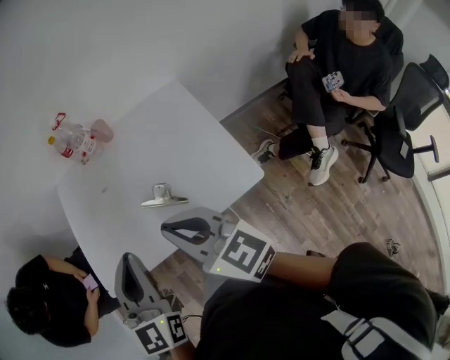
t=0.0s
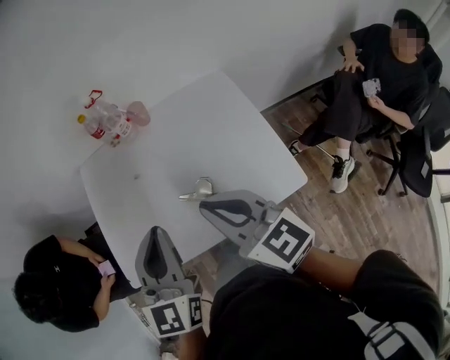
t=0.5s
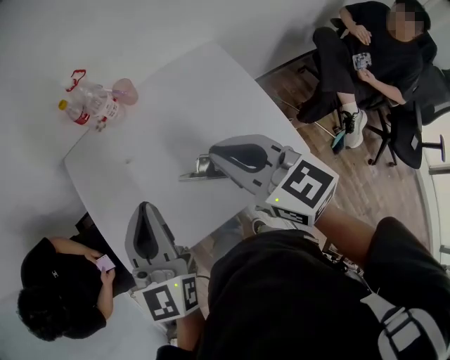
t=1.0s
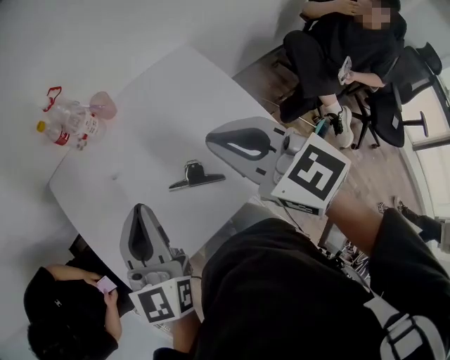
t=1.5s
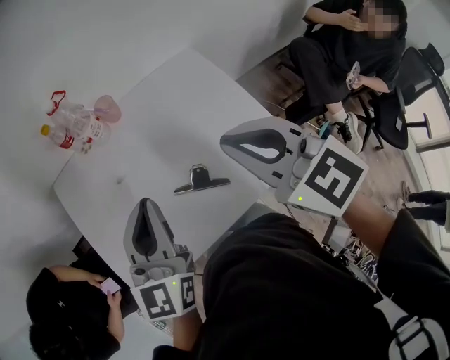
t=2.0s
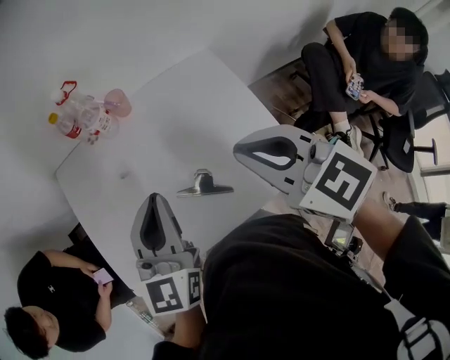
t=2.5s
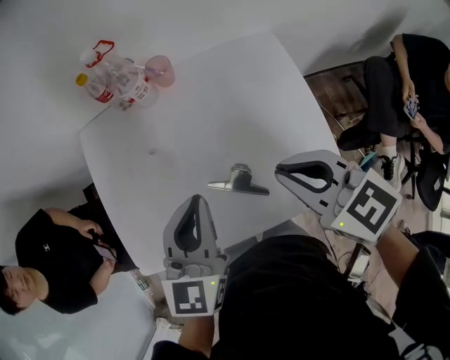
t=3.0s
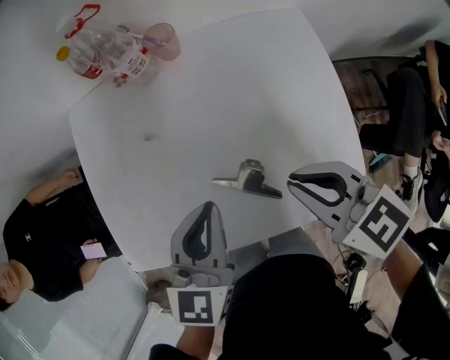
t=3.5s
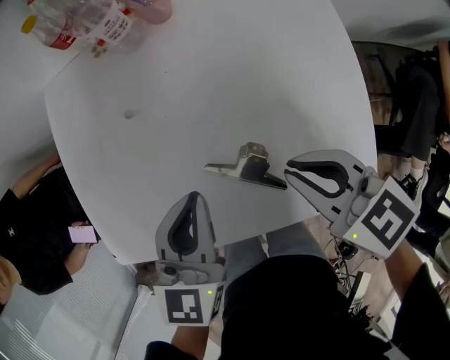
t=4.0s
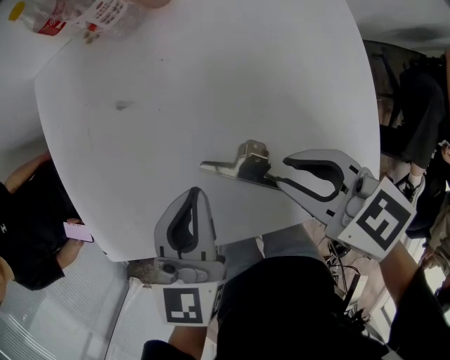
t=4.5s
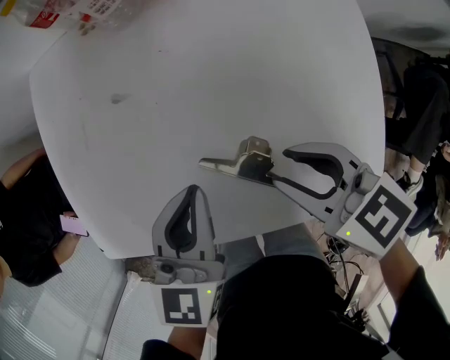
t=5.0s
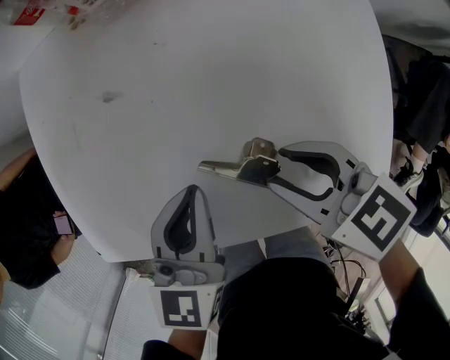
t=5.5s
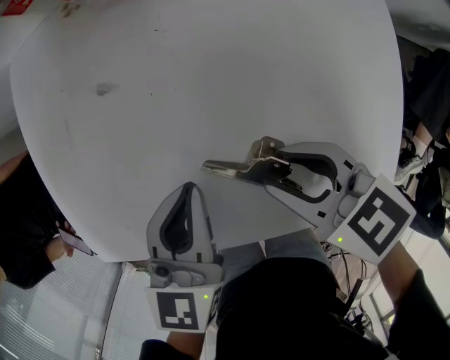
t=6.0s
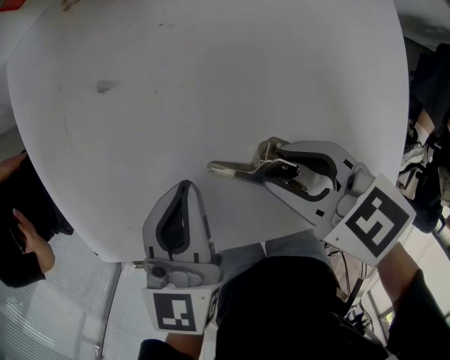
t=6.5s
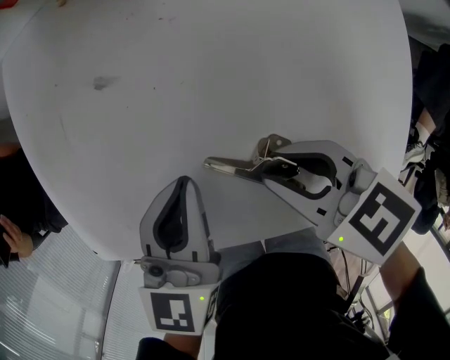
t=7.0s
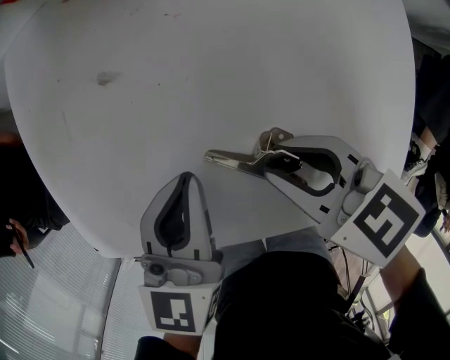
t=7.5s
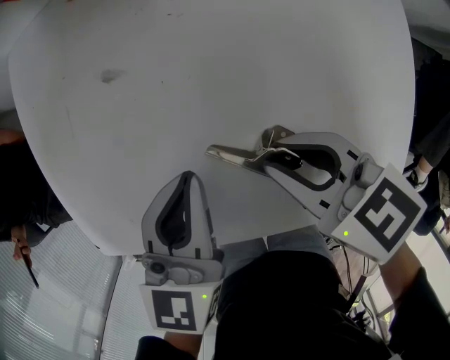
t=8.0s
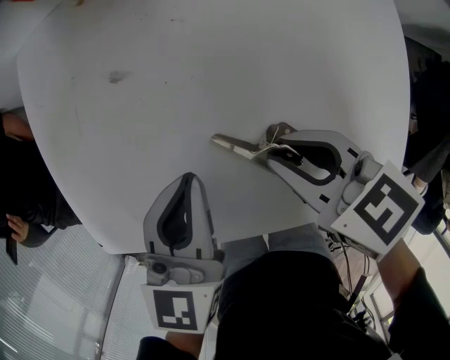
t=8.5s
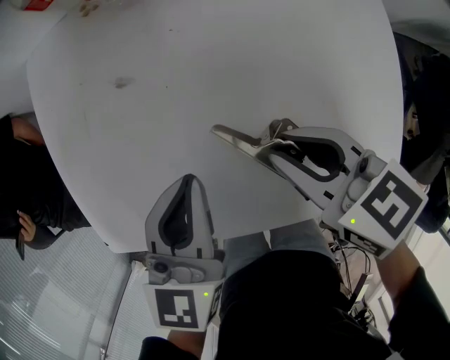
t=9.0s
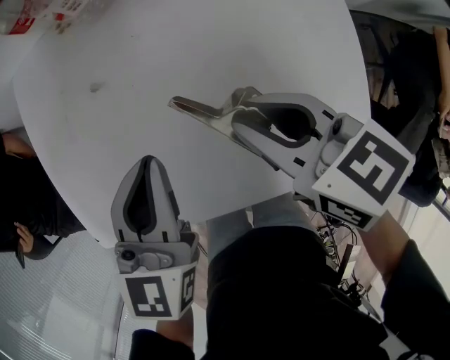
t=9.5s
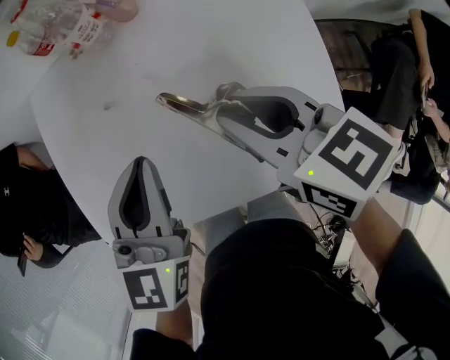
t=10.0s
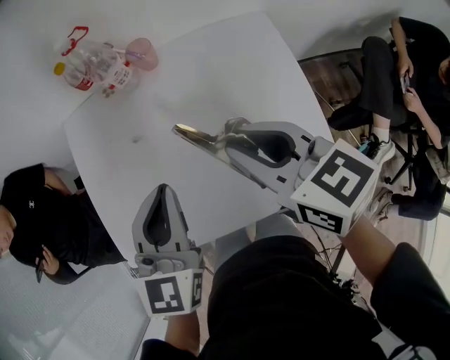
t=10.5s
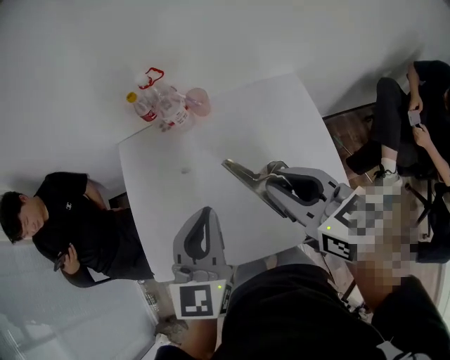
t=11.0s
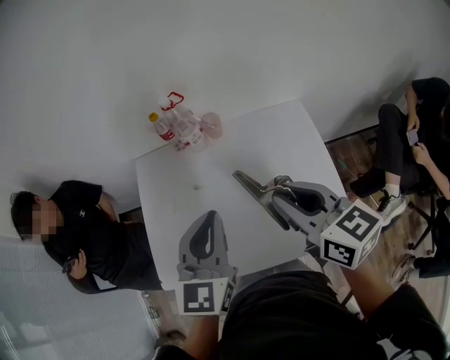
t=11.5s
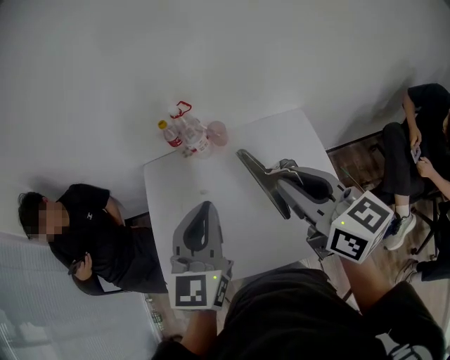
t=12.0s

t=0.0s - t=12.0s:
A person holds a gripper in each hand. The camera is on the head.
t=0.0s - t=2.0s: Both grippers move forward, roughly 15 cm. The right gripper swivels some 20 degrees.
t=2.0s - t=4.0s: The grippers both shift downward by some 20 cm. The left gripper rotates some 20 degrees. Meanwhile the right gripper swivels roughly 30 degrees.
t=4.0s - t=6.0s: Both grippers travel together downward, some 5 cm. The right gripper opens.
t=6.0s - t=8.0s: The grippers move only a little.
t=8.0s - t=10.0s: The left gripper shifts by roughly 5 cm.
t=10.0s - t=12.0s: The two grippers go some 10 cm upward. The right gripper swivels approximately 20 degrees.

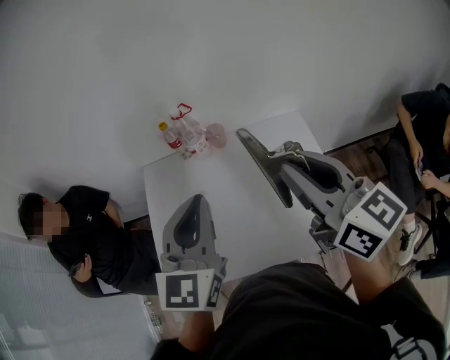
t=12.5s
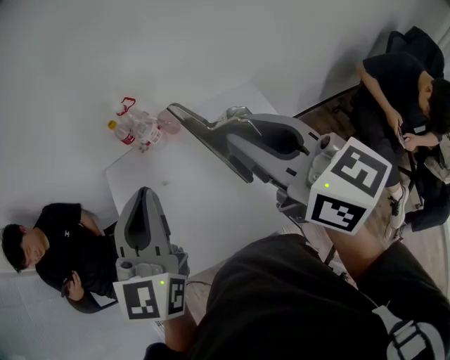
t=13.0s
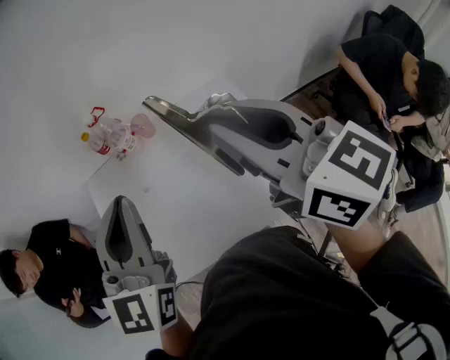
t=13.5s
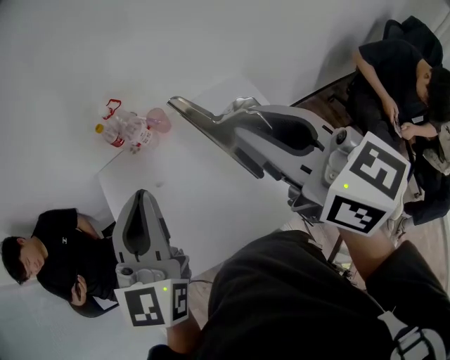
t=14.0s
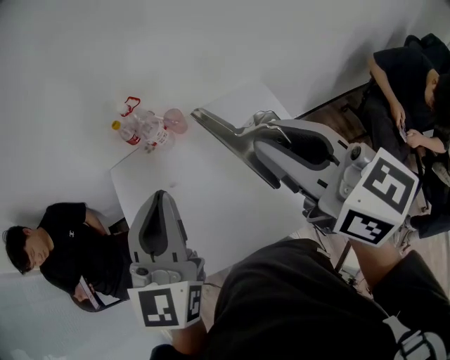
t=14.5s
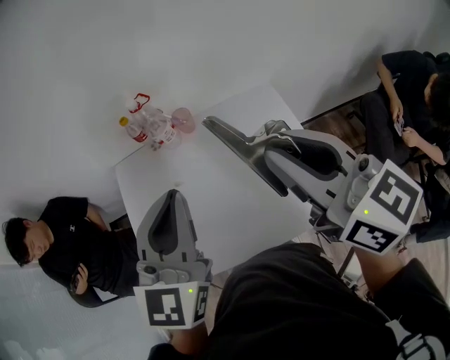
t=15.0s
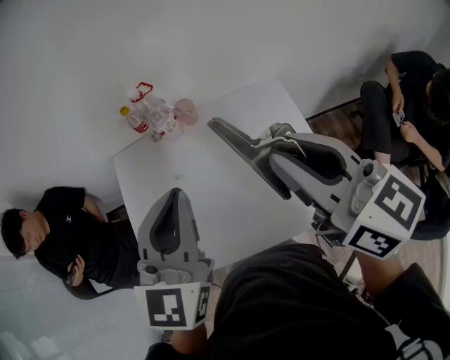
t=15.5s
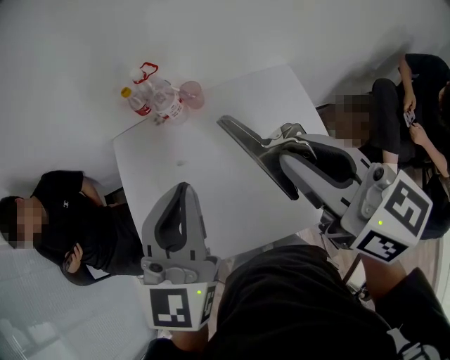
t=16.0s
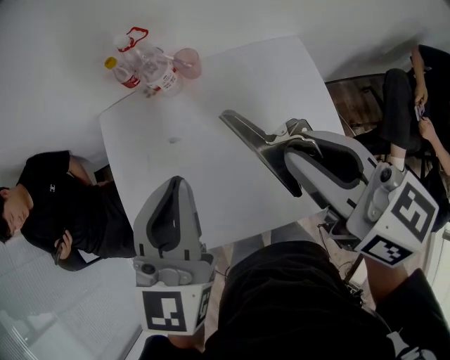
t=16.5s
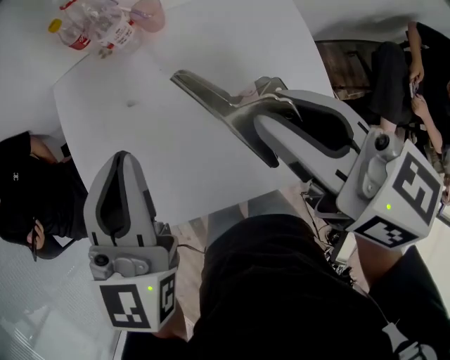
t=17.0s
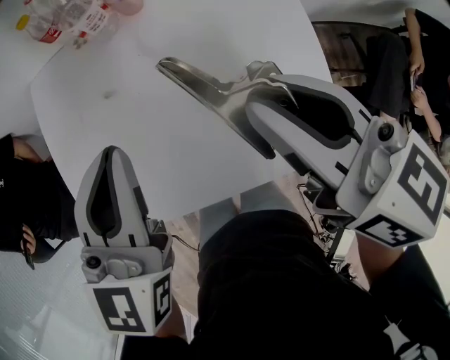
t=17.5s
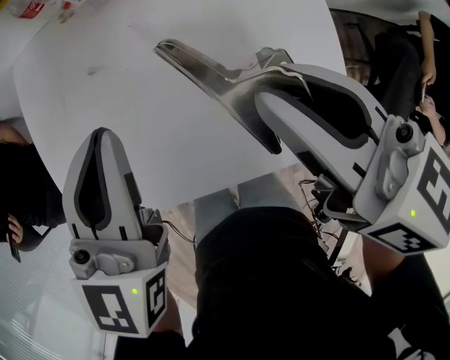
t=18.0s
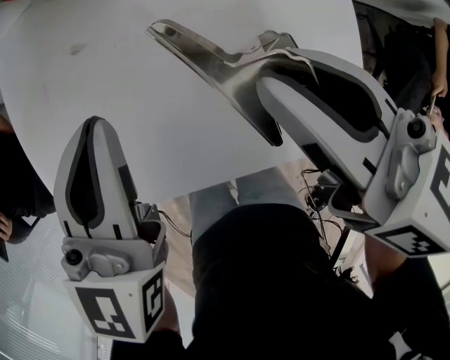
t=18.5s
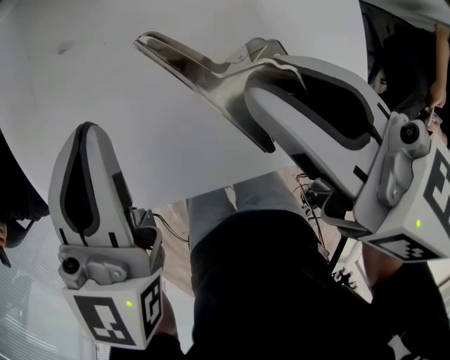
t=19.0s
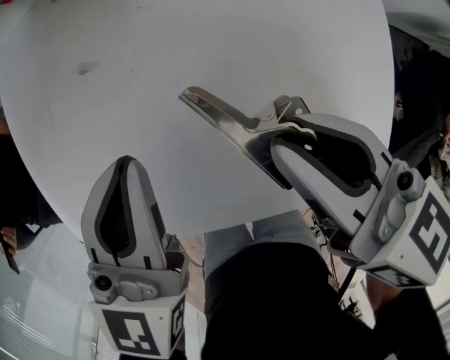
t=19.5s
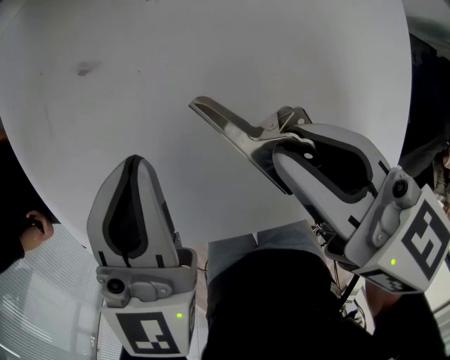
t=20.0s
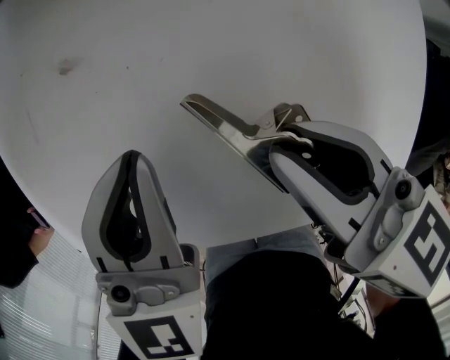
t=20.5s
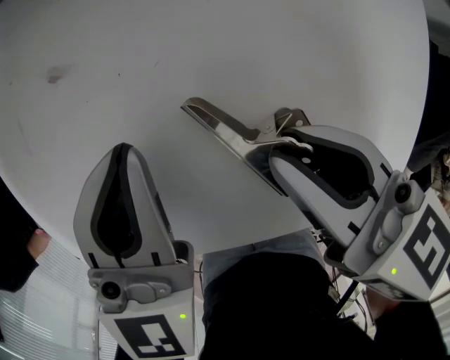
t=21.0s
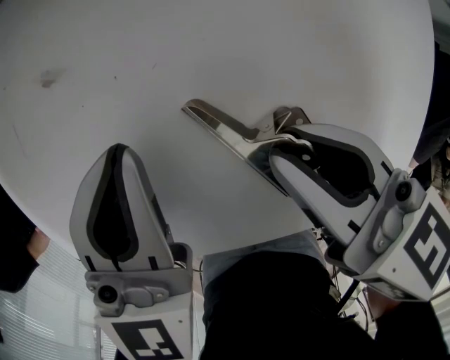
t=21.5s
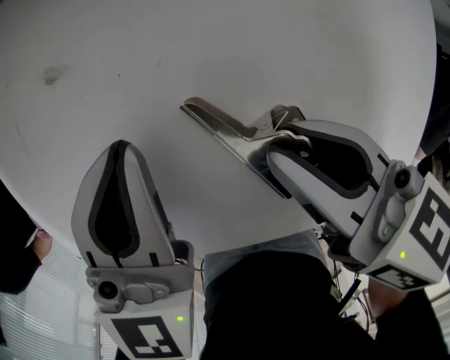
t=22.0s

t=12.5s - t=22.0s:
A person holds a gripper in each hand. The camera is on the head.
t=12.5s - t=18.0s: The grippers move only a little.
t=18.0s - t=20.0s: There are only small adjustments of the grippers.
t=20.0s - t=22.0s: The grippers move only a little.

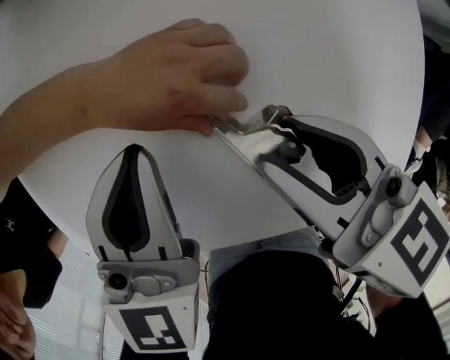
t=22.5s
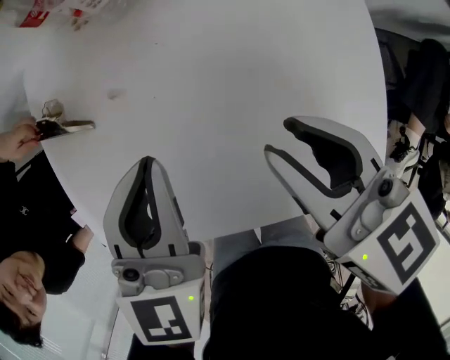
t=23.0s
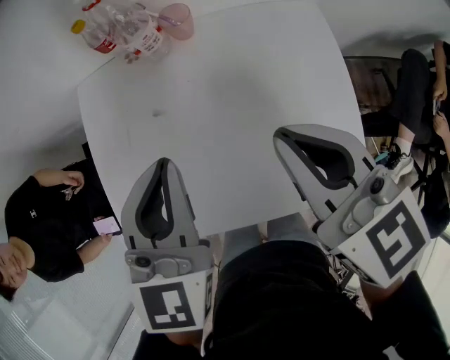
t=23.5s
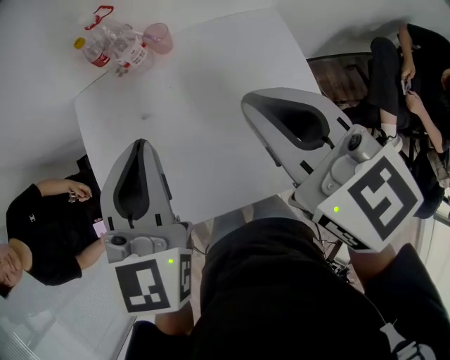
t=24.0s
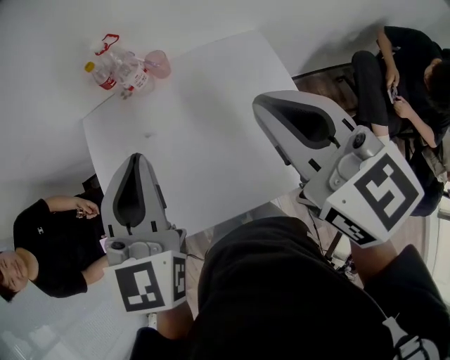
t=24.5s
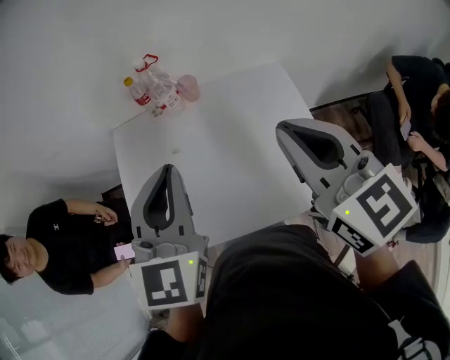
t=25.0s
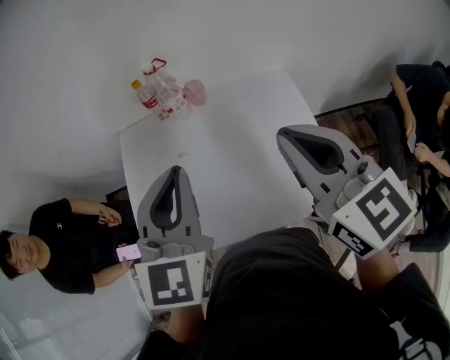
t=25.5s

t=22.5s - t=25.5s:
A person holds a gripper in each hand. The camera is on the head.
t=22.5s - t=24.0s: The right gripper moves upward, approximately 5 cm, and closes.
t=24.0s - t=25.5s: The left gripper heads upward and backward, covering roughly 10 cm. Meanwhile the right gripper is displaced upward, backward and to the right by approximately 15 cm.

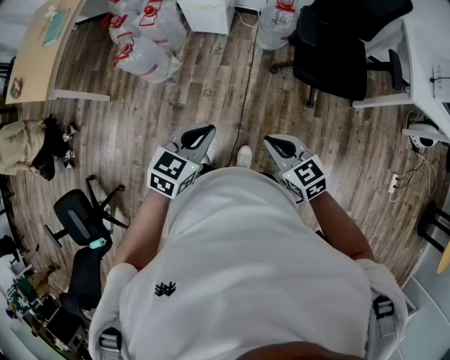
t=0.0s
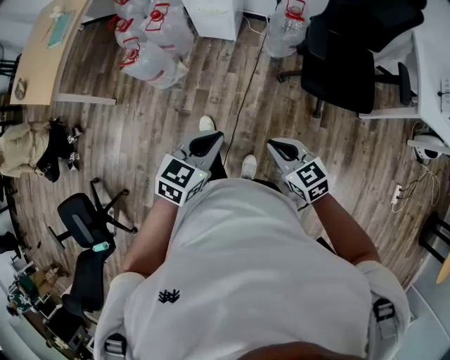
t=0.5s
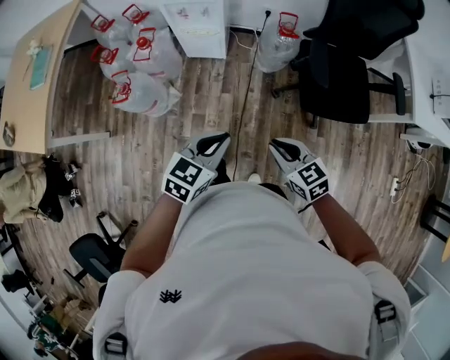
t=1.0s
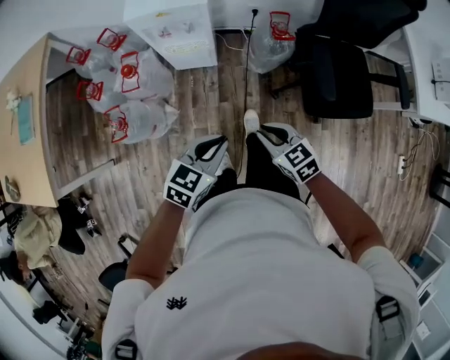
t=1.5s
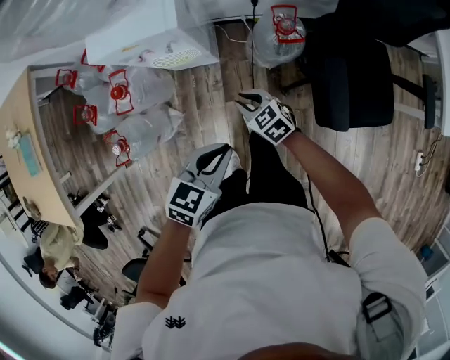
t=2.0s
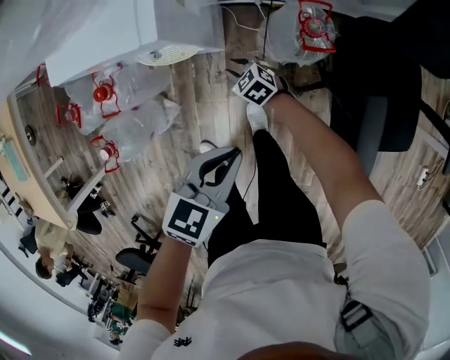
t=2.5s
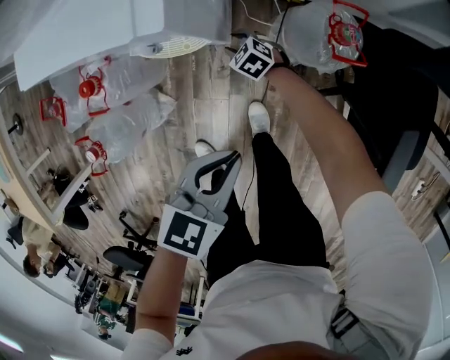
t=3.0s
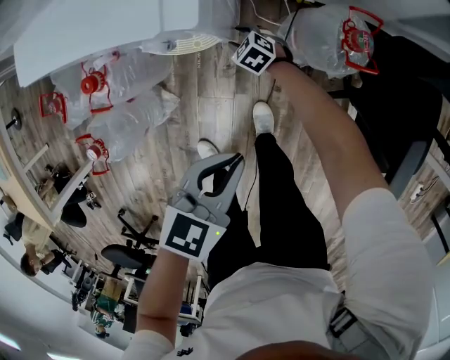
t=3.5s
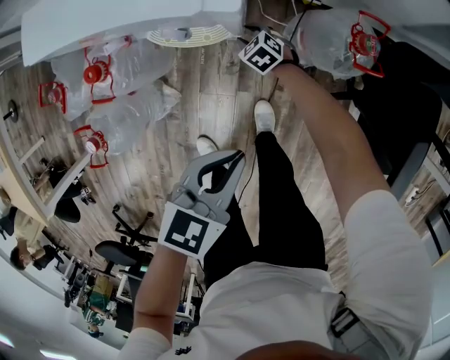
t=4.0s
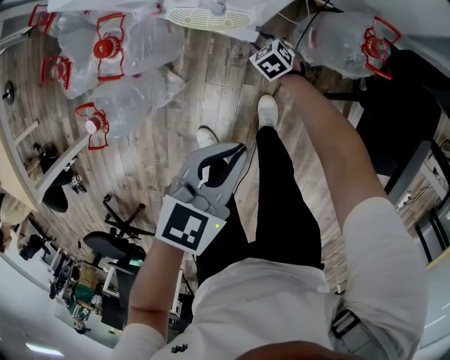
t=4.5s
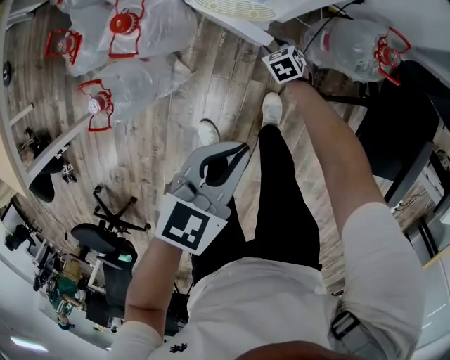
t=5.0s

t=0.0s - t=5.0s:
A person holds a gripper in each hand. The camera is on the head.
t=0.0s - t=2.5s: The two grippers travel together, forward, some 60 cm. The right gripper shifts approximately 40 cm downward, and opens its fingers.
t=2.5s - t=5.0s: The right gripper moves downward and to the left, approximately 15 cm, while the left gripper shifts about 15 cm to the left.
